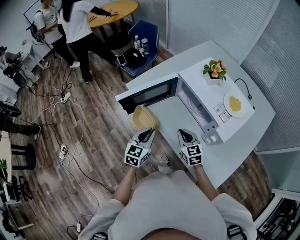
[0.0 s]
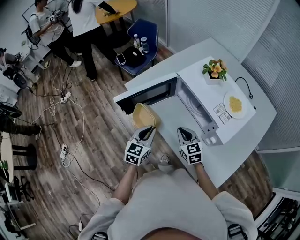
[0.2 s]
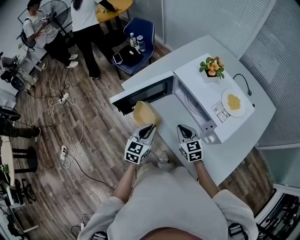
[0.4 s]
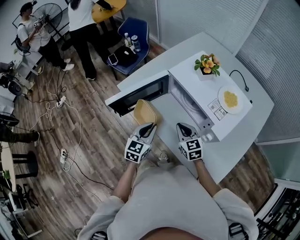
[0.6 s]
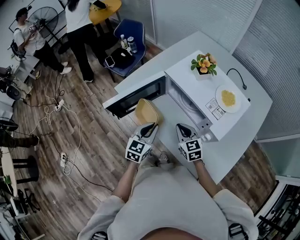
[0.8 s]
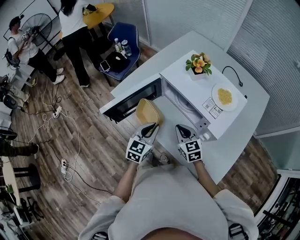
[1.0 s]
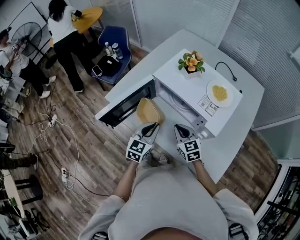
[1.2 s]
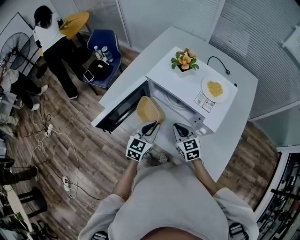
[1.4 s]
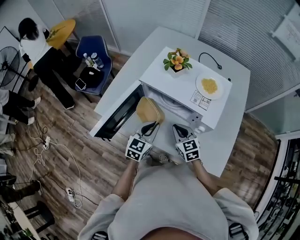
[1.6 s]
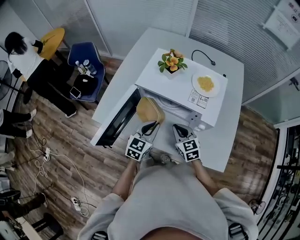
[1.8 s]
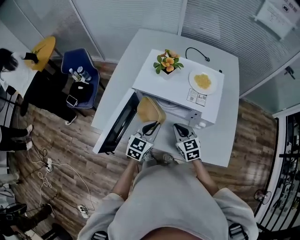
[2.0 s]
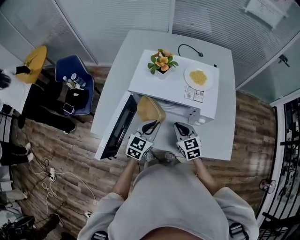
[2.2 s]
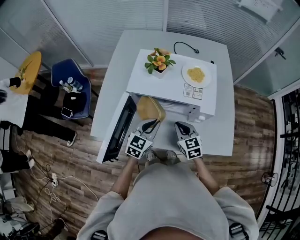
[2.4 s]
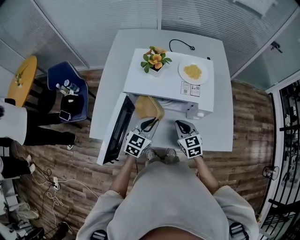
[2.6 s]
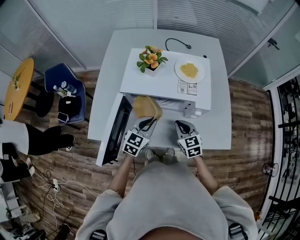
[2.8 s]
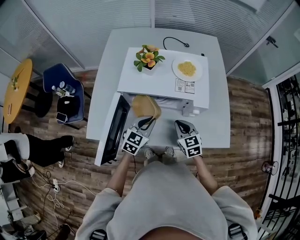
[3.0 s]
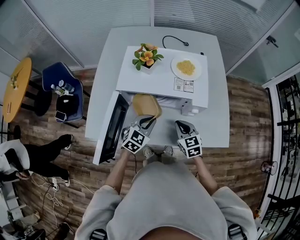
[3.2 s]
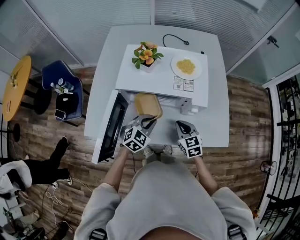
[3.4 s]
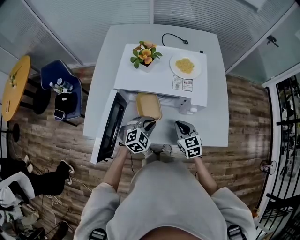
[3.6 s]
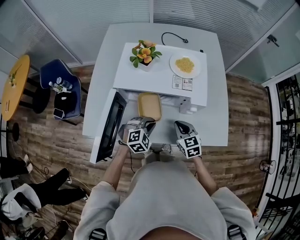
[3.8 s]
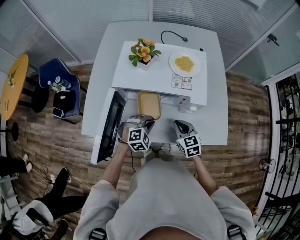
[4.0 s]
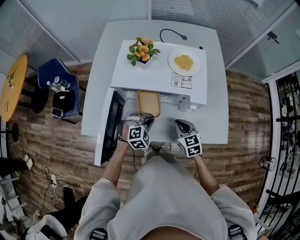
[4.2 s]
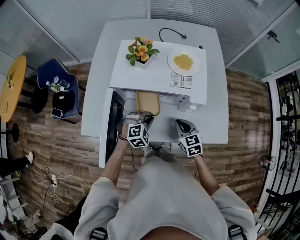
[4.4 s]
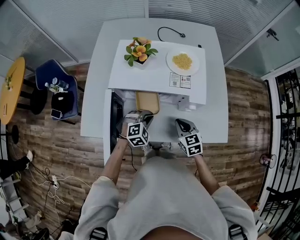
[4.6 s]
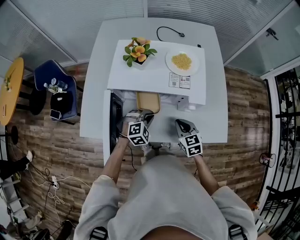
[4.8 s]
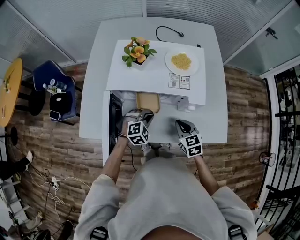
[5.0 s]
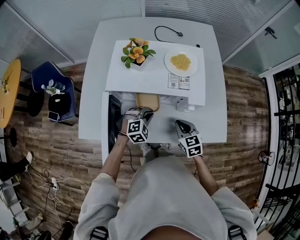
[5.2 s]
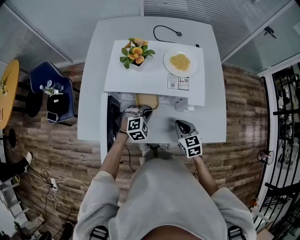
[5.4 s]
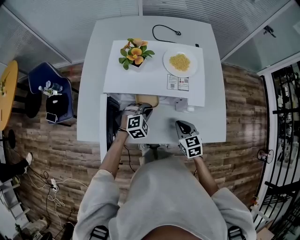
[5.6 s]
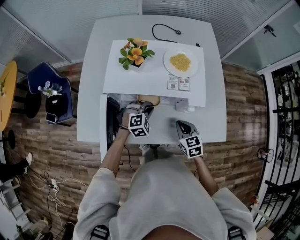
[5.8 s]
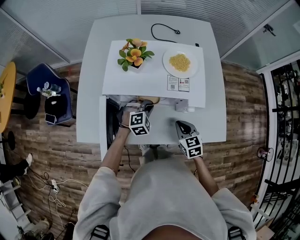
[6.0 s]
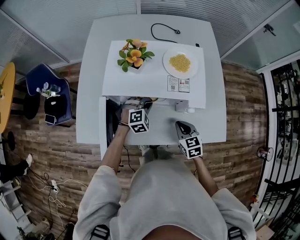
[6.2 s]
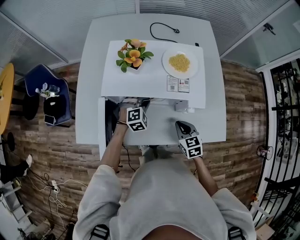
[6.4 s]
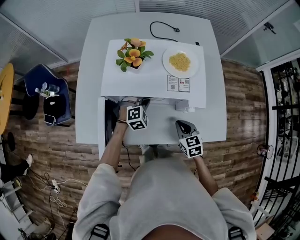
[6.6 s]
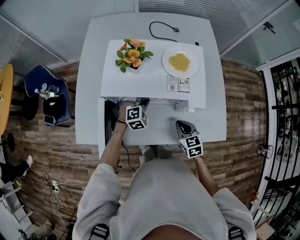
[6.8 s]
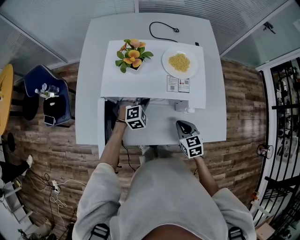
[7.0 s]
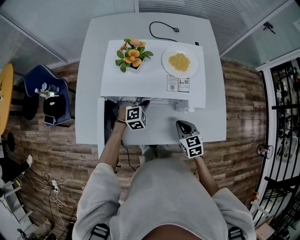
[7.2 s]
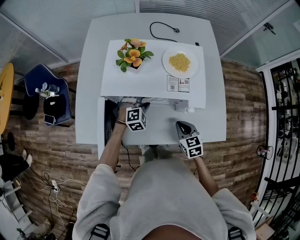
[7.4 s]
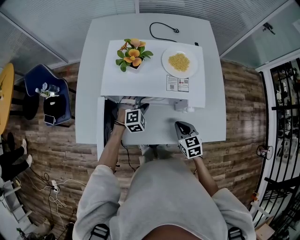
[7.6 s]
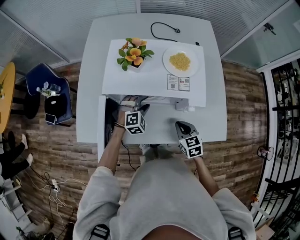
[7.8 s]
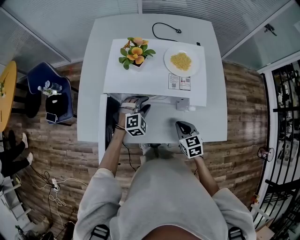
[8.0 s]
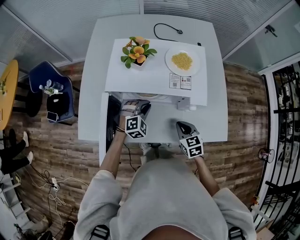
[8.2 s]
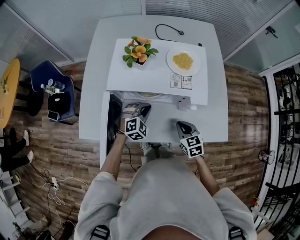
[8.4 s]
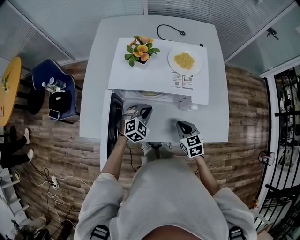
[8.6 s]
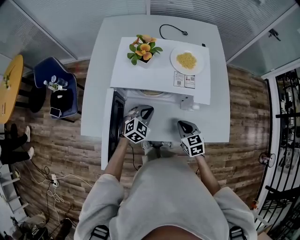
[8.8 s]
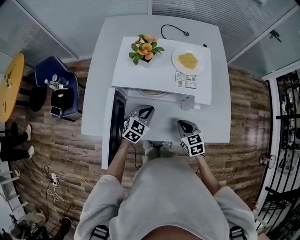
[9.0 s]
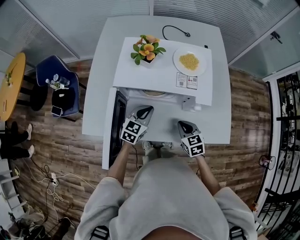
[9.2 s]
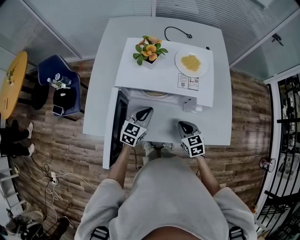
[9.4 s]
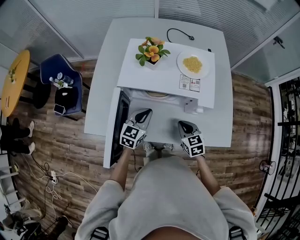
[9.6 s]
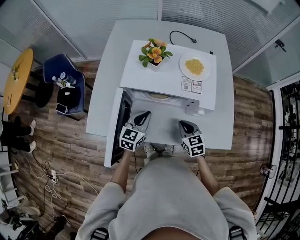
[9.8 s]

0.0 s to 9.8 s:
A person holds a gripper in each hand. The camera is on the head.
0.0 to 1.4 s: The left gripper is displaced to the right and forward by roughly 15 cm, and changes its angle by roughly 20 degrees; the right gripper moves roughly 5 cm.
1.4 to 2.8 s: The right gripper swivels some 30 degrees; the left gripper ends up some 5 cm from where it was, and rotates about 30 degrees.
2.8 to 4.2 s: The left gripper travels downward by some 10 cm, and twists about 40 degrees clockwise, seen from behind.
4.2 to 5.6 s: The left gripper is displaced forward by roughly 5 cm.
5.6 to 7.0 s: The left gripper shifts approximately 5 cm forward.
7.0 to 8.4 s: The left gripper travels backward by approximately 5 cm, and opens, then closes once more.
8.4 to 9.8 s: The left gripper moves upward and to the left, roughly 10 cm, and rotates around the line of its fingers by approximately 50 degrees, counterclockwise from behind.

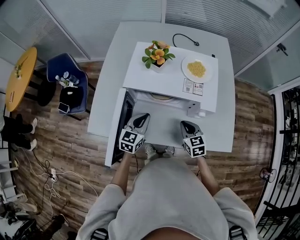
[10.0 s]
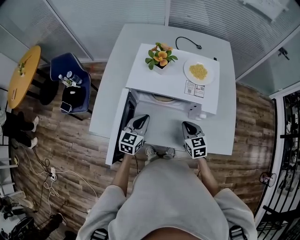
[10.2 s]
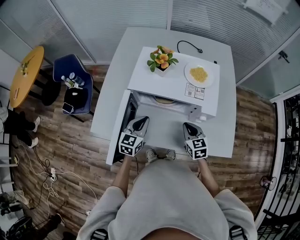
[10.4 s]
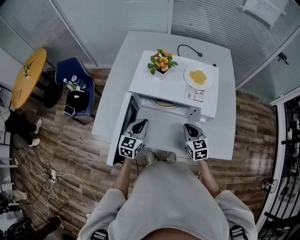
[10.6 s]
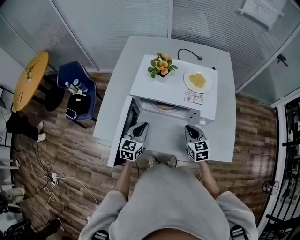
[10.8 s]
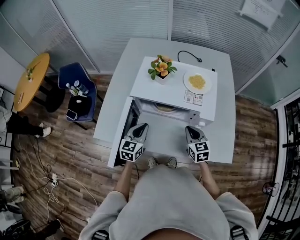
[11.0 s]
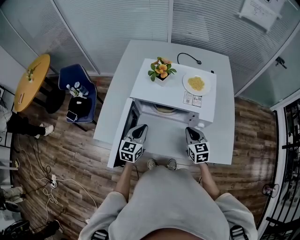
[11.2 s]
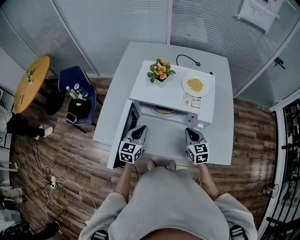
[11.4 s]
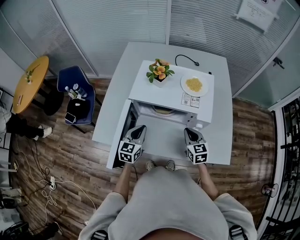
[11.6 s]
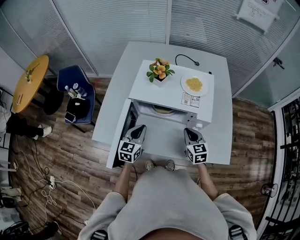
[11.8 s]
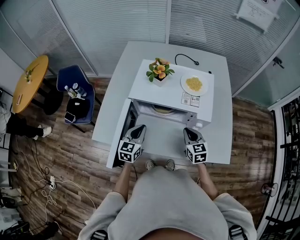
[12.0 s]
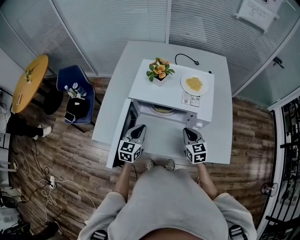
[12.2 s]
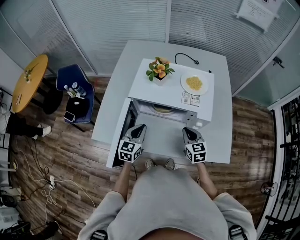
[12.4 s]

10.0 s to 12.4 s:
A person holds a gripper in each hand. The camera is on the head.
10.0 to 11.2 s: The grippers stay close to where they were, moving slightly.
11.2 to 12.4 s: The two grippers keep their place.

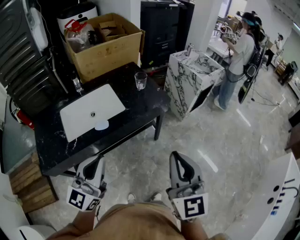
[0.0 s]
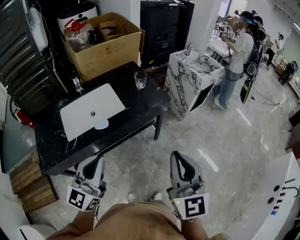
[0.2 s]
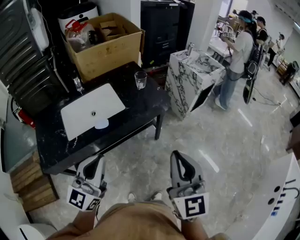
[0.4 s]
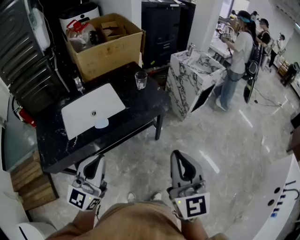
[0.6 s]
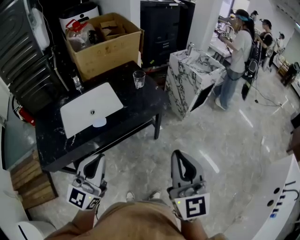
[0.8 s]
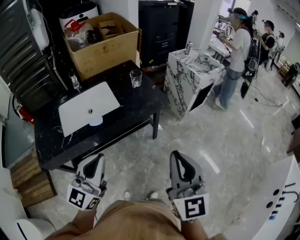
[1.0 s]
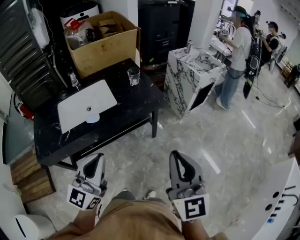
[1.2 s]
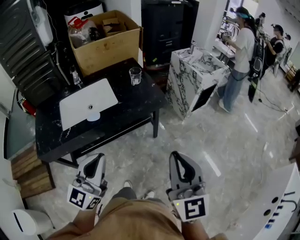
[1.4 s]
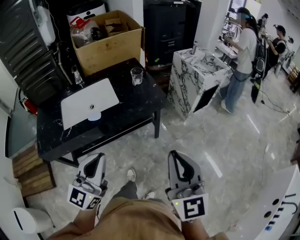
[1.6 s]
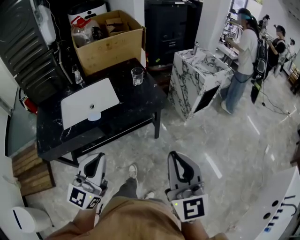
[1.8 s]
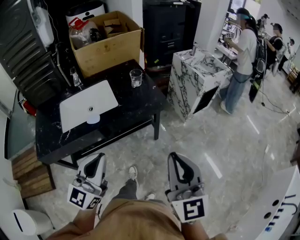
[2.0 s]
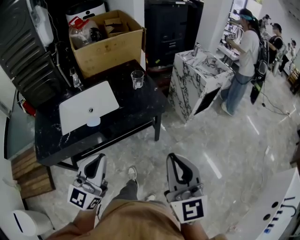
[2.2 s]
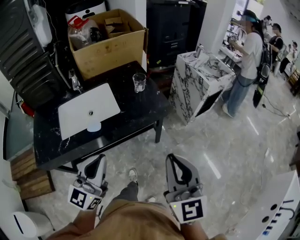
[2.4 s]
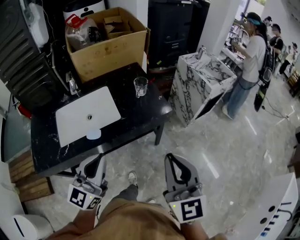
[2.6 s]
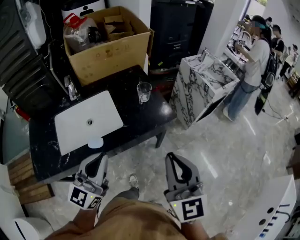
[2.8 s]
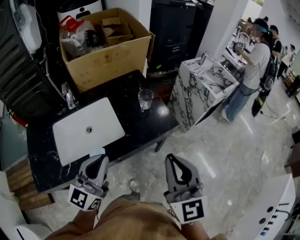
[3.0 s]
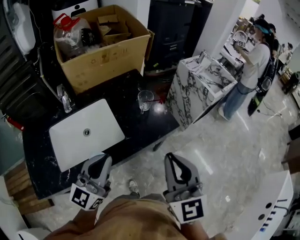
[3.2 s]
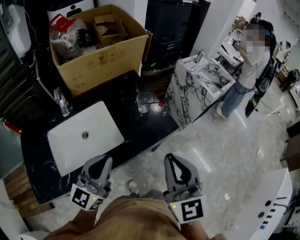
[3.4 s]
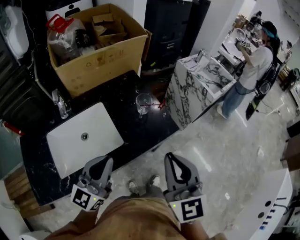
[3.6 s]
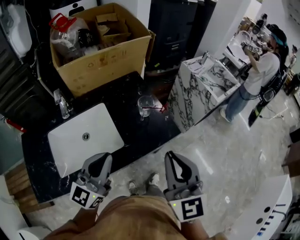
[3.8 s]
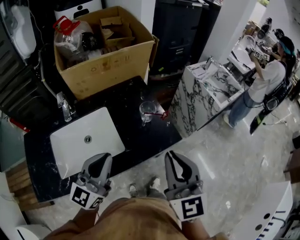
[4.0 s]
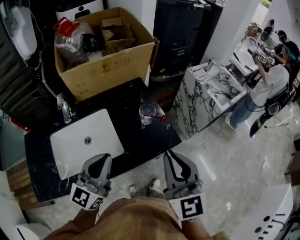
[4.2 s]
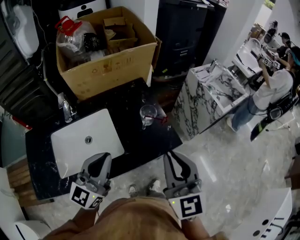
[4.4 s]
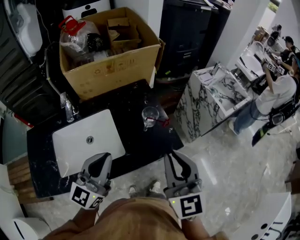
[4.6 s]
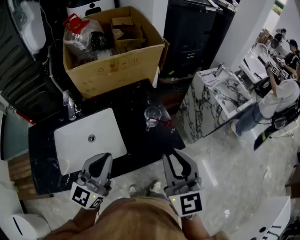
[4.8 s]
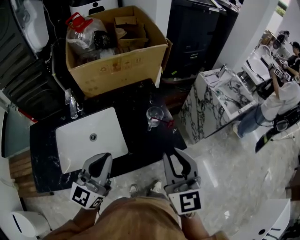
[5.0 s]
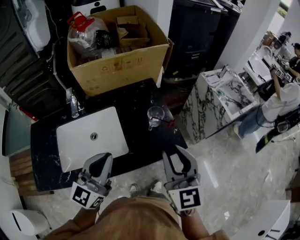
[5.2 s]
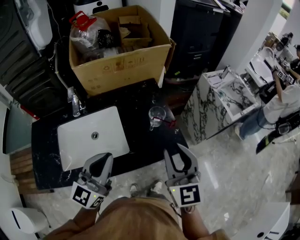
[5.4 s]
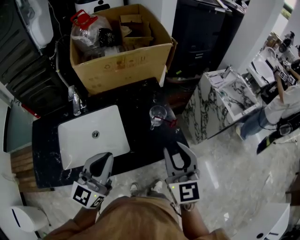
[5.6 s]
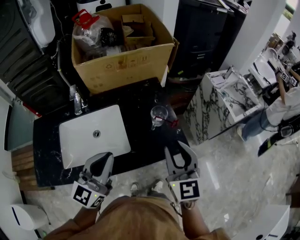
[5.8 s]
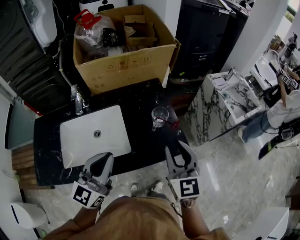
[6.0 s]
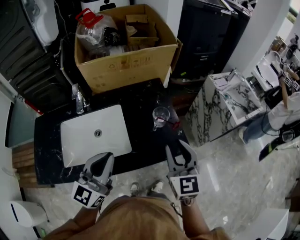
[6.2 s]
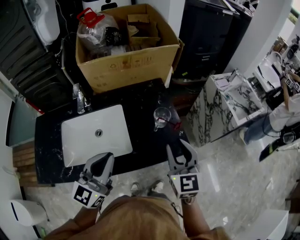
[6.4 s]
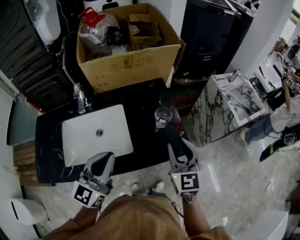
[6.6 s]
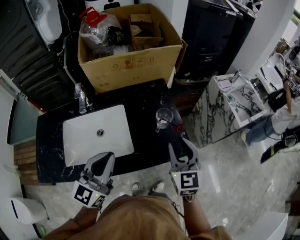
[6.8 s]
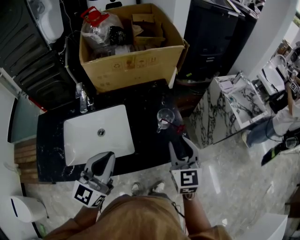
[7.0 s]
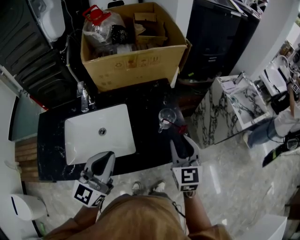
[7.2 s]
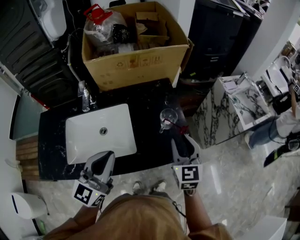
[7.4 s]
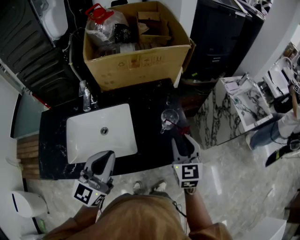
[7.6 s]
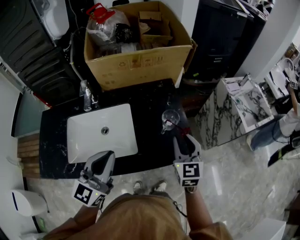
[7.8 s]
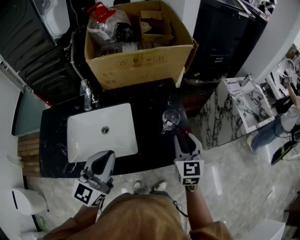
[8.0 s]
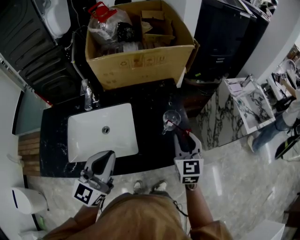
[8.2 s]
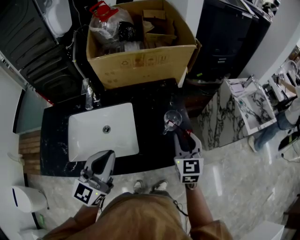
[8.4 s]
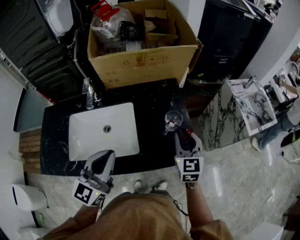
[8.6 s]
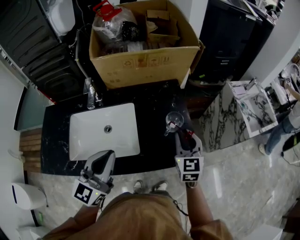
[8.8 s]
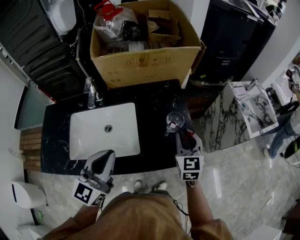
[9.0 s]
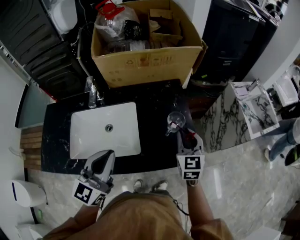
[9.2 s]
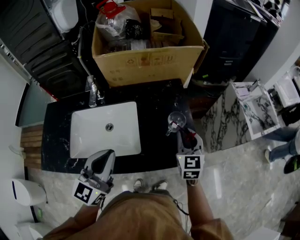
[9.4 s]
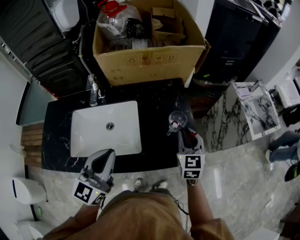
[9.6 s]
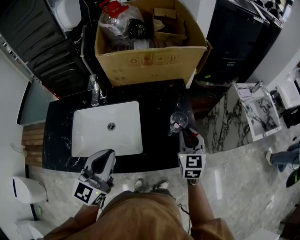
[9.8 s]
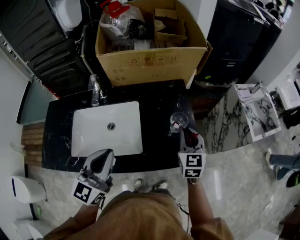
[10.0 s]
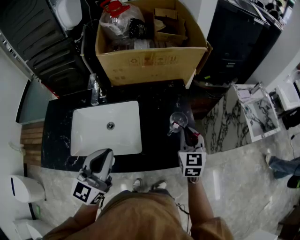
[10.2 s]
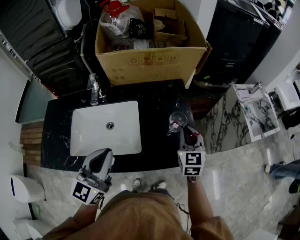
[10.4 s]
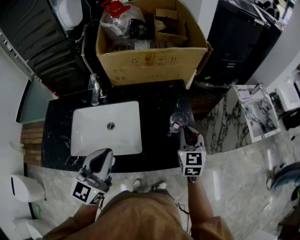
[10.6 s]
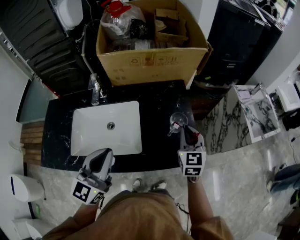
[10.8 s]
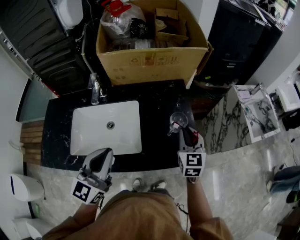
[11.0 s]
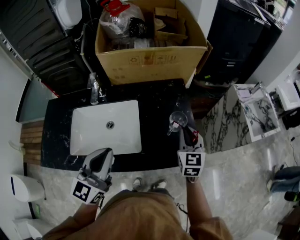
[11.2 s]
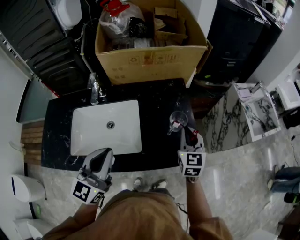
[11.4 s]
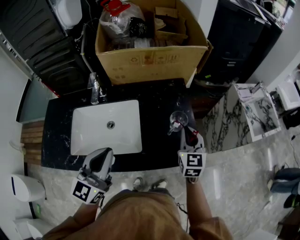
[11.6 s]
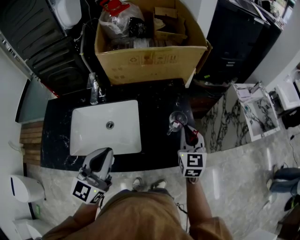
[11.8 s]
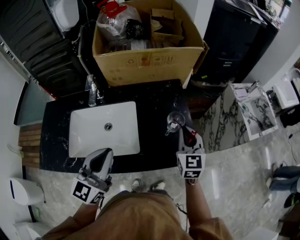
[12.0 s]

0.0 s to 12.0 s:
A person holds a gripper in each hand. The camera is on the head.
0.0 to 1.6 s: Both grippers travel together to the right, approximately 10 cm.
1.6 to 3.0 s: Both grippers travel together forward and to the left, some 25 cm.
3.0 to 4.4 s: Both grippers travel together forward, approximately 10 cm.
4.4 to 6.0 s: The right gripper goes roughly 10 cm downward and forward, and opens its fingers.
6.0 to 7.6 s: The right gripper shifts roughly 10 cm downward and forward.
7.6 to 9.0 s: The right gripper changes place by some 5 cm.
9.0 to 12.0 s: There are only small adjustments of the grippers.
